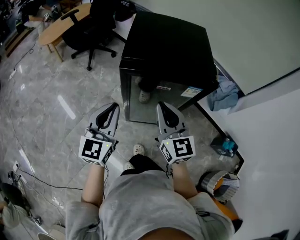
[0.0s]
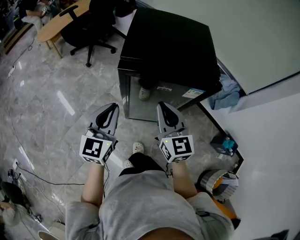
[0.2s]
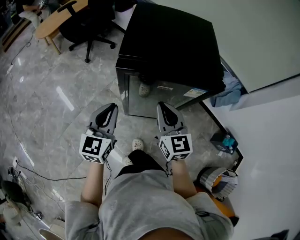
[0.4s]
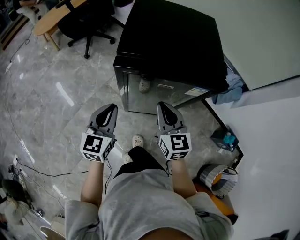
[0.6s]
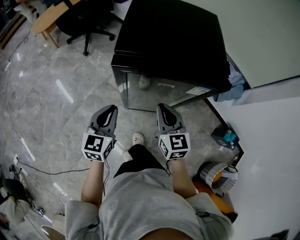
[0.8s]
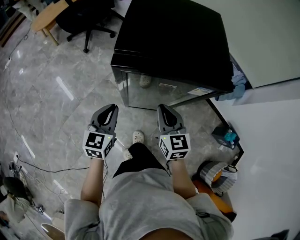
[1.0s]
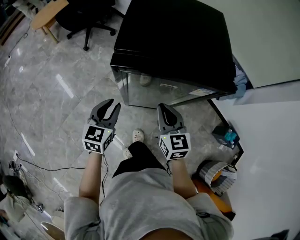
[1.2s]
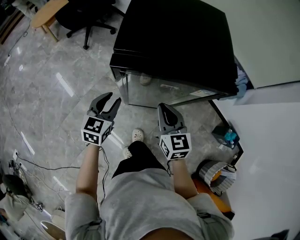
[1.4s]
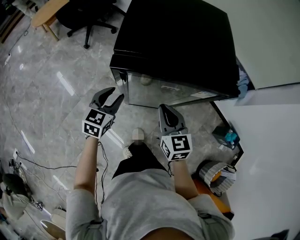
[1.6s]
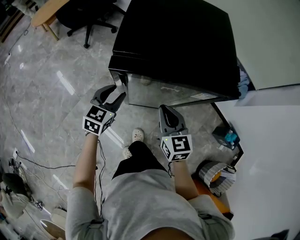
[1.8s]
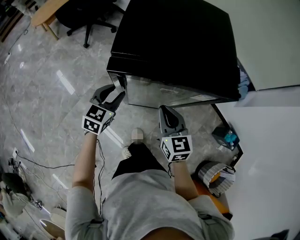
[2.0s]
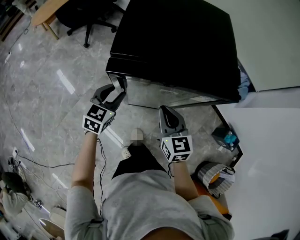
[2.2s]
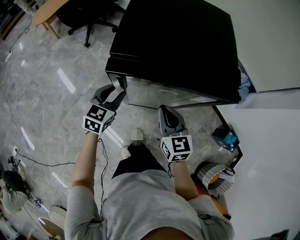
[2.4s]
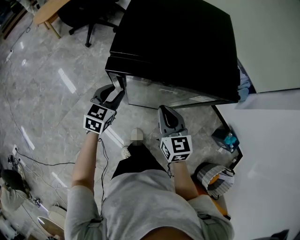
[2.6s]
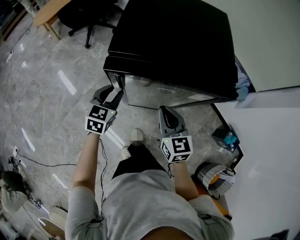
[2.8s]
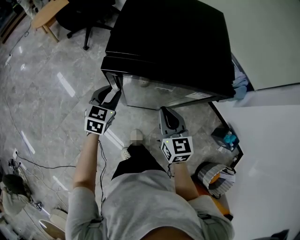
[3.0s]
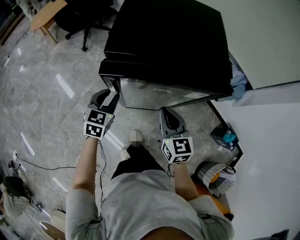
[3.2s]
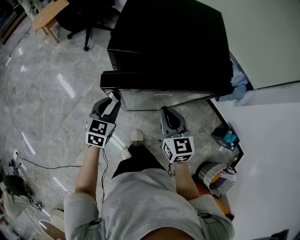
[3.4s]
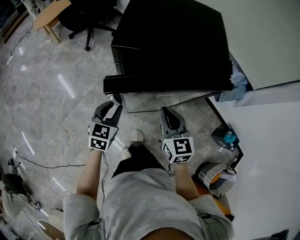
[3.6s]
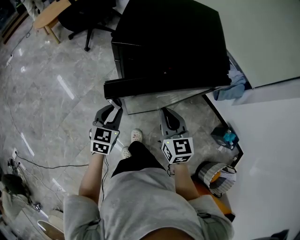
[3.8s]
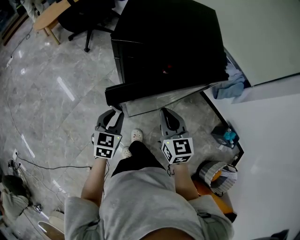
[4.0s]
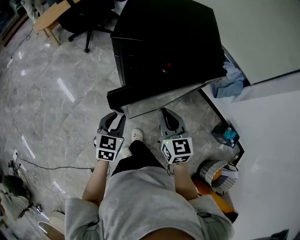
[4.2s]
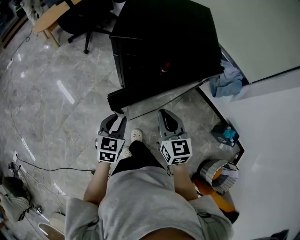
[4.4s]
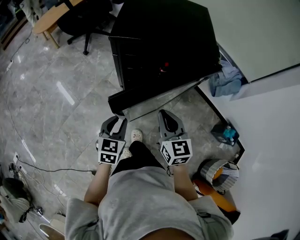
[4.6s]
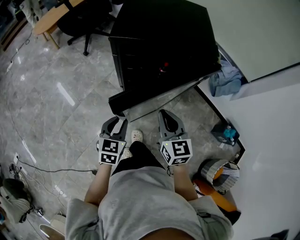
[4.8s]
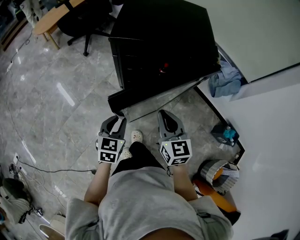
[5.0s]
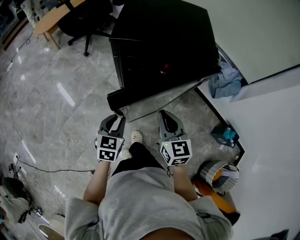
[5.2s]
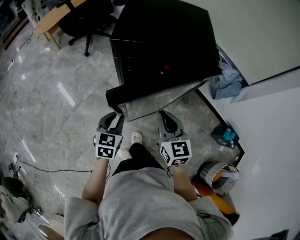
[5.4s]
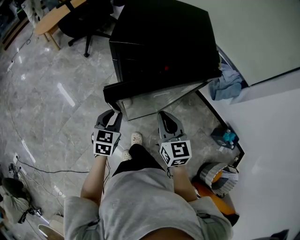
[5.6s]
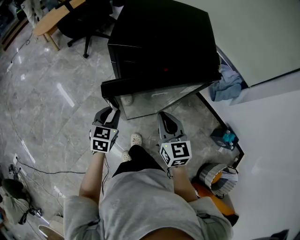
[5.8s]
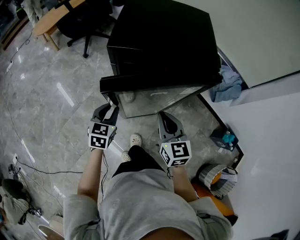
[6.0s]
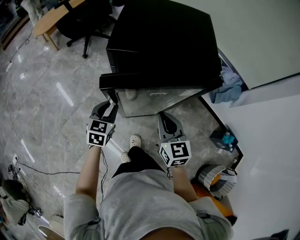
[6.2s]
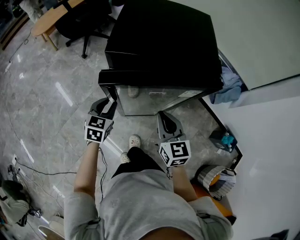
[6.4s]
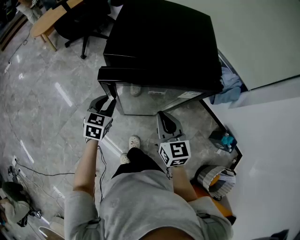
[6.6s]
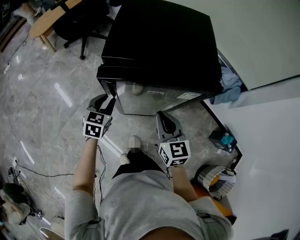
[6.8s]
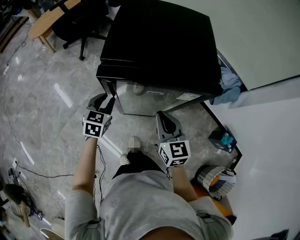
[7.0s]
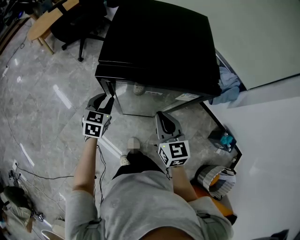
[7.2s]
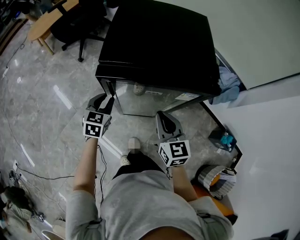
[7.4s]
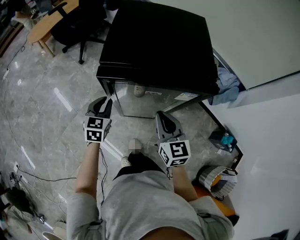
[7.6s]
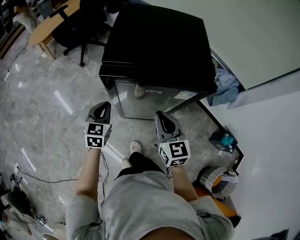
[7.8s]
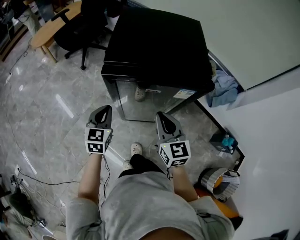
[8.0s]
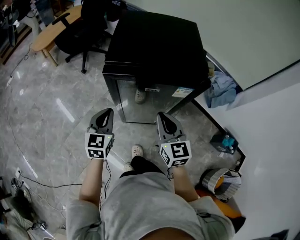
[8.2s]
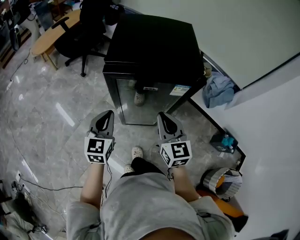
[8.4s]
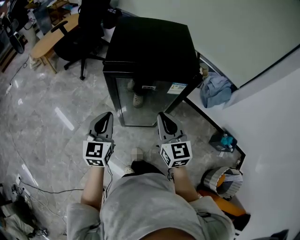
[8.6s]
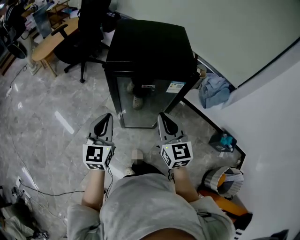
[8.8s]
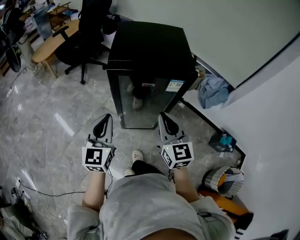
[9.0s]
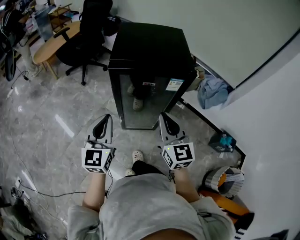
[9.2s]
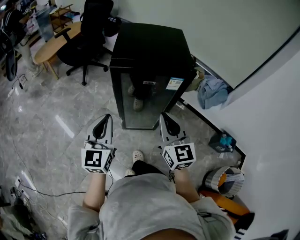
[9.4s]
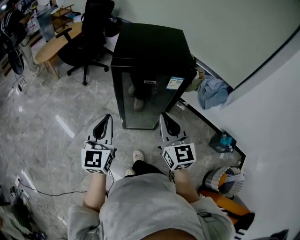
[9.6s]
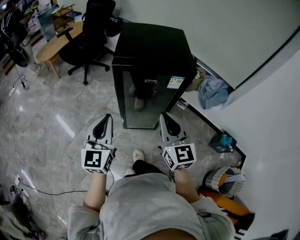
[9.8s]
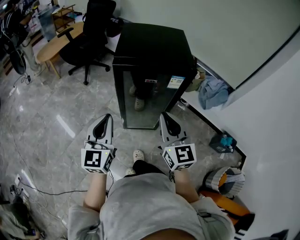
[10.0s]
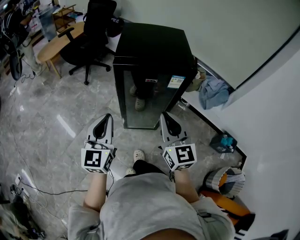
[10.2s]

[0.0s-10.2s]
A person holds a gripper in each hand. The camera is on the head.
0.0s to 1.4s: The right gripper is displaced downward by some 15 cm; the left gripper is displaced downward and forward by about 20 cm, swivels roughly 30 degrees, and opens its fingers.
1.4s to 3.0s: The grippers make only small movements.
3.0s to 4.4s: The right gripper shifts about 10 cm backward. Meanwhile the left gripper is displaced backward by approximately 15 cm.
4.4s to 5.8s: The left gripper shifts some 5 cm forward.
5.8s to 7.2s: The right gripper is displaced forward by about 5 cm. The left gripper is displaced forward by some 10 cm.
7.2s to 8.8s: The right gripper travels upward and backward by about 15 cm, while the left gripper travels upward and backward by approximately 20 cm, changes its angle by about 30 degrees, and closes up.
8.8s to 10.2s: Both grippers move backward and upward, some 10 cm.

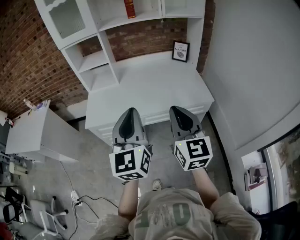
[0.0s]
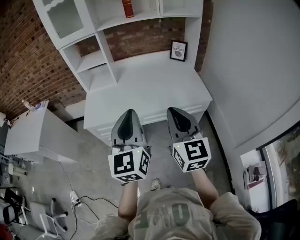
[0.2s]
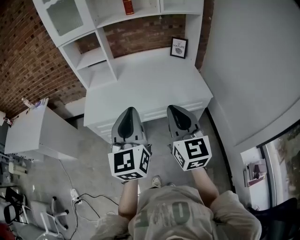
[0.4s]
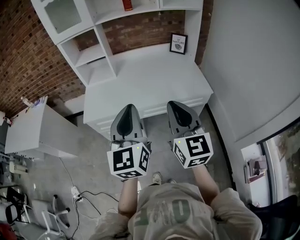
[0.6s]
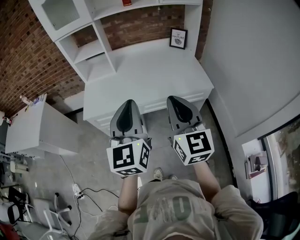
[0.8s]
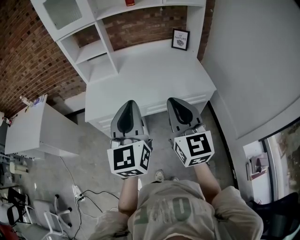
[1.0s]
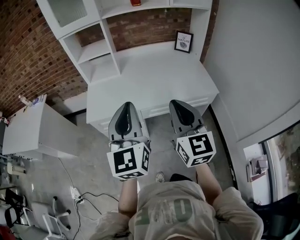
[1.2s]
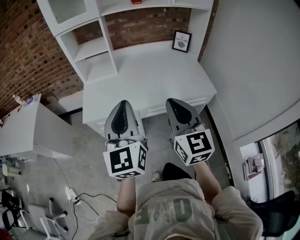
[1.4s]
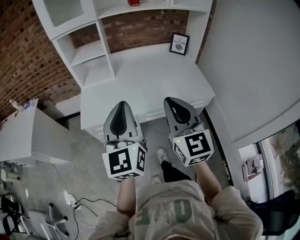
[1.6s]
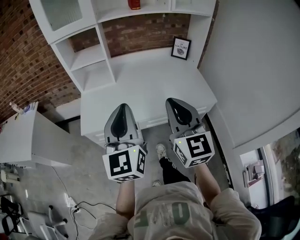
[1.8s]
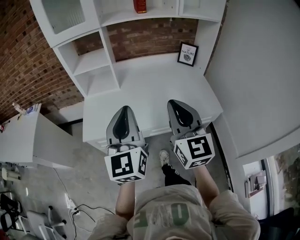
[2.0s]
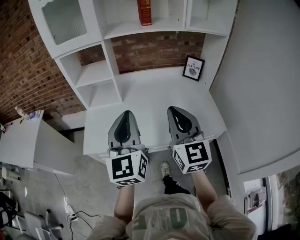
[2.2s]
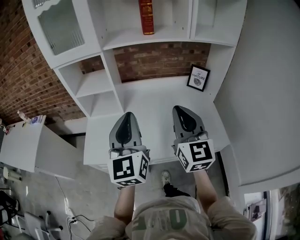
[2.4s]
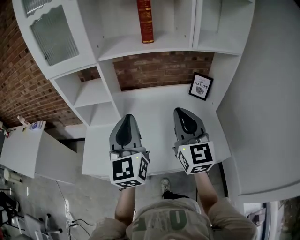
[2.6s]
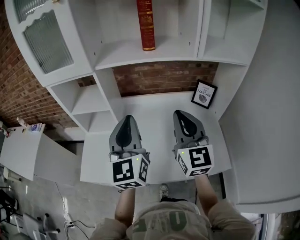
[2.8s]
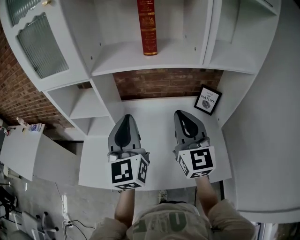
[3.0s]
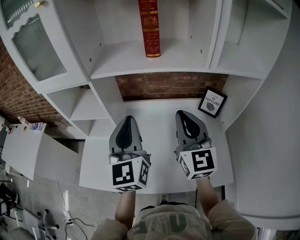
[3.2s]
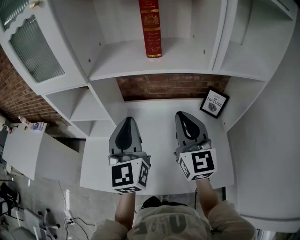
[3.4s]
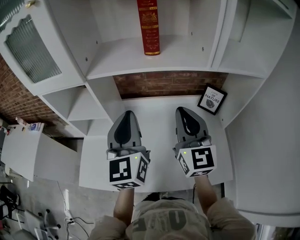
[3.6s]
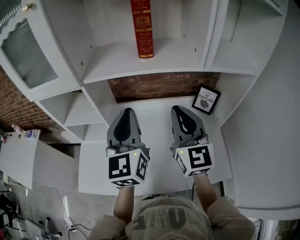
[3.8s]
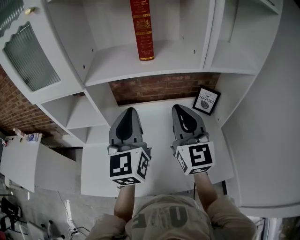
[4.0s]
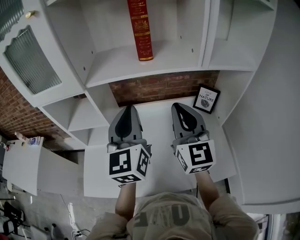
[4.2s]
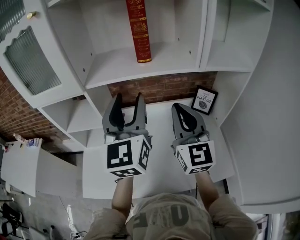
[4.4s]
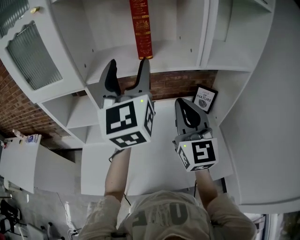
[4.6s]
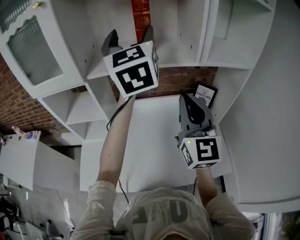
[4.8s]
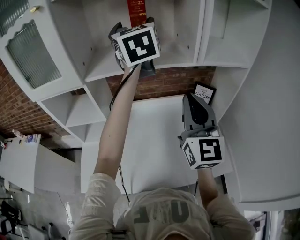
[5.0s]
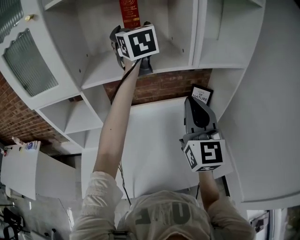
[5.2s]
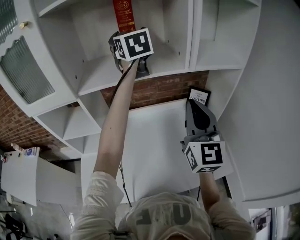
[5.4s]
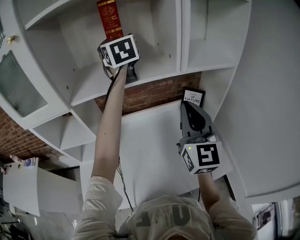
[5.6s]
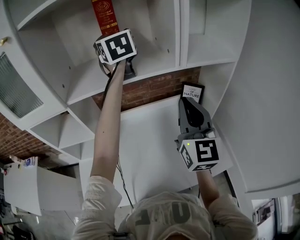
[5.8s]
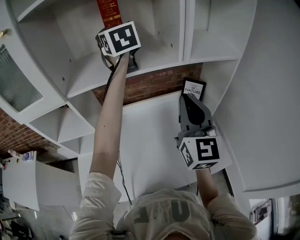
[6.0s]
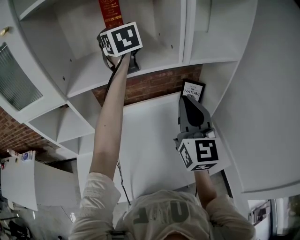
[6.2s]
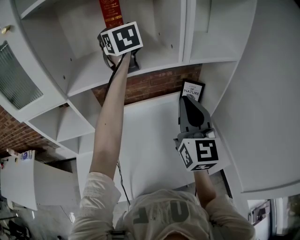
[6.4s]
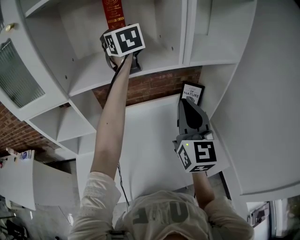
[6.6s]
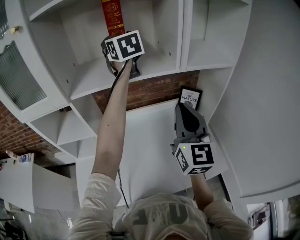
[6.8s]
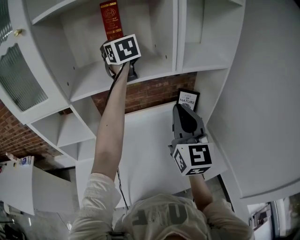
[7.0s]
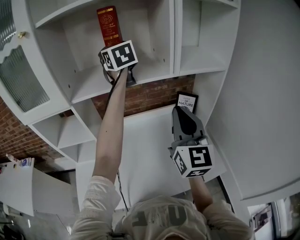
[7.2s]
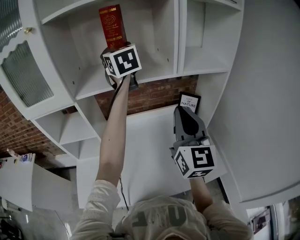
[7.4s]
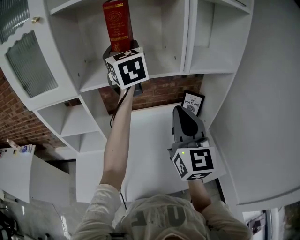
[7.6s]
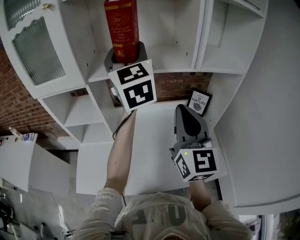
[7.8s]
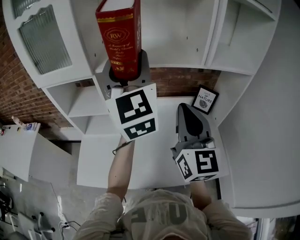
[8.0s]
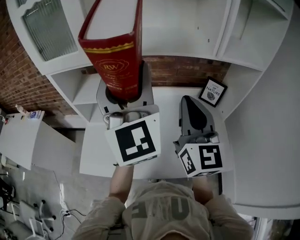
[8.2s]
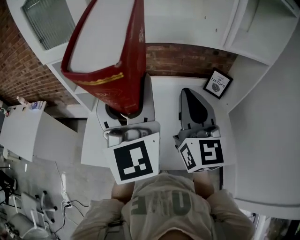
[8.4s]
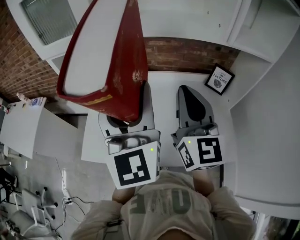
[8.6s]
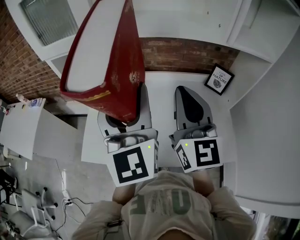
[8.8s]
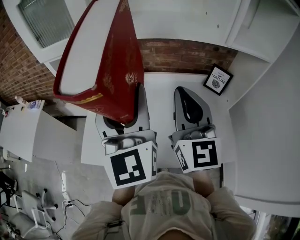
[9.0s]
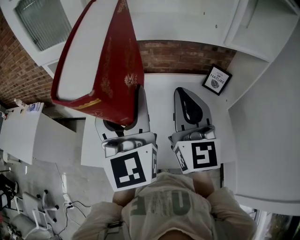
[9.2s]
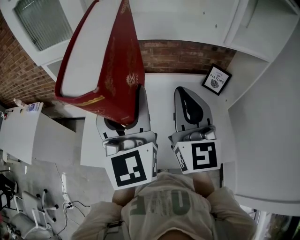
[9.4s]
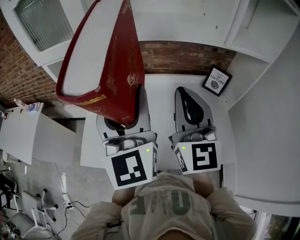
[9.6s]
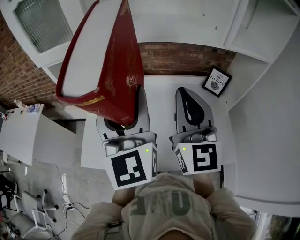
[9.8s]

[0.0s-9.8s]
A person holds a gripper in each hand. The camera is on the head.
0.0s to 1.4s: Both grippers move to the left, roughly 10 cm.
1.4s to 2.8s: Both grippers move forward, roughly 35 cm.
2.8s to 4.2s: The grippers both shift forward by about 10 cm.
4.2s to 5.6s: The left gripper goes roughly 30 cm forward and upward, and opens up; the right gripper heads to the right, covering approximately 10 cm.
5.6s to 7.0s: The grippers make only small movements.
7.0s to 8.4s: The right gripper heads to the left, covering about 10 cm; the left gripper shifts roughly 35 cm backward.
8.4s to 9.8s: The grippers move only a little.

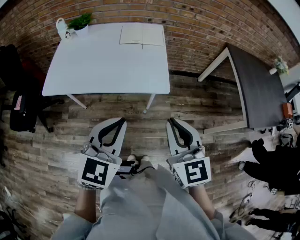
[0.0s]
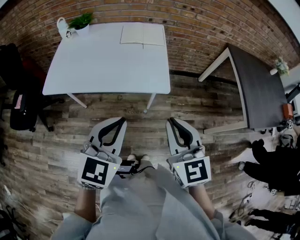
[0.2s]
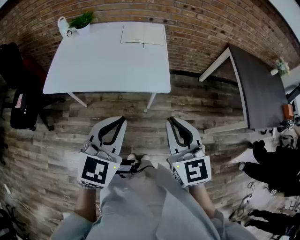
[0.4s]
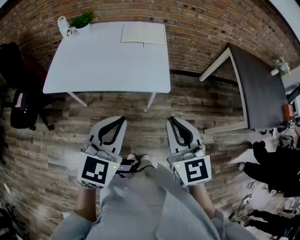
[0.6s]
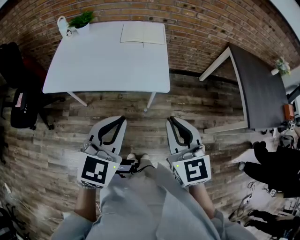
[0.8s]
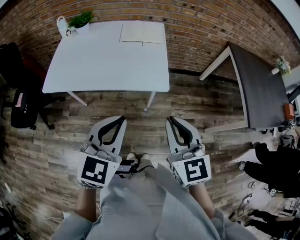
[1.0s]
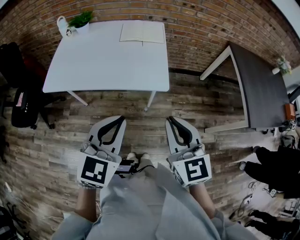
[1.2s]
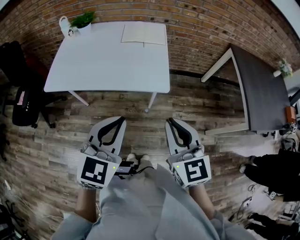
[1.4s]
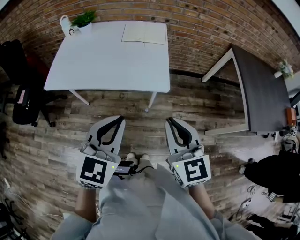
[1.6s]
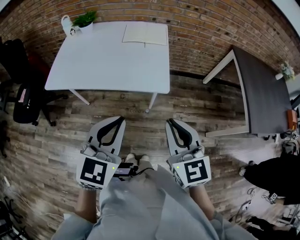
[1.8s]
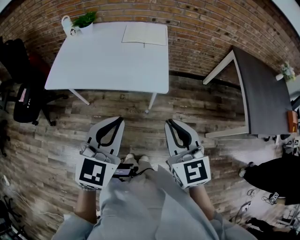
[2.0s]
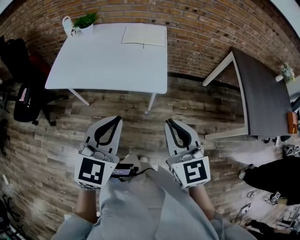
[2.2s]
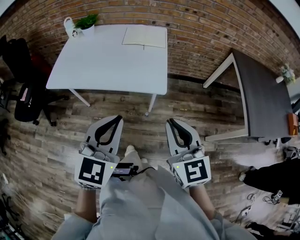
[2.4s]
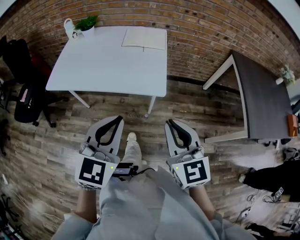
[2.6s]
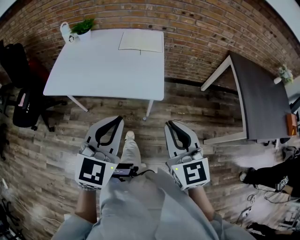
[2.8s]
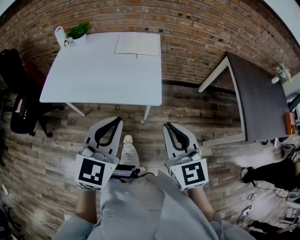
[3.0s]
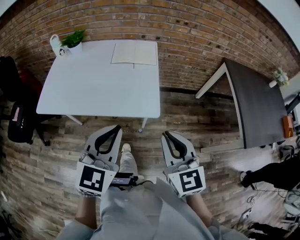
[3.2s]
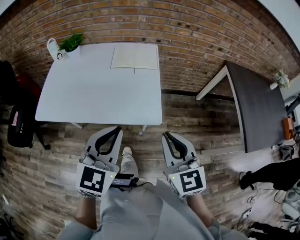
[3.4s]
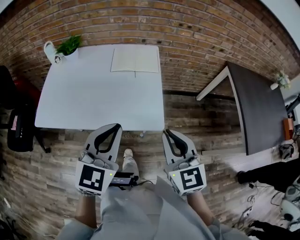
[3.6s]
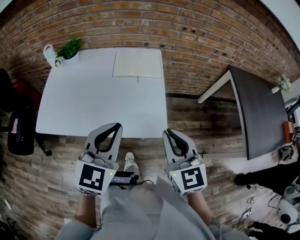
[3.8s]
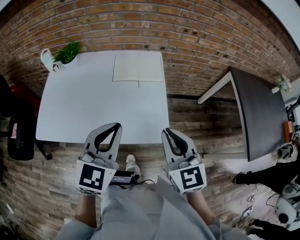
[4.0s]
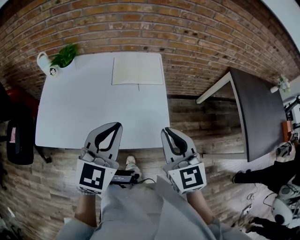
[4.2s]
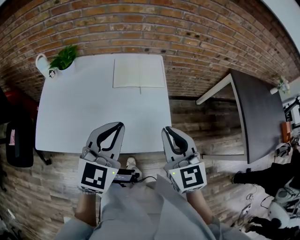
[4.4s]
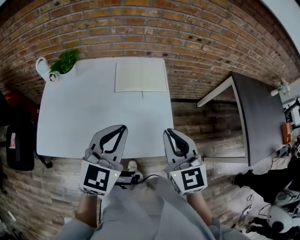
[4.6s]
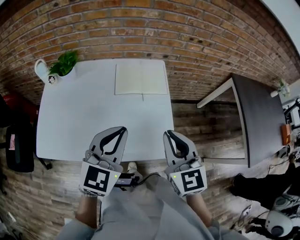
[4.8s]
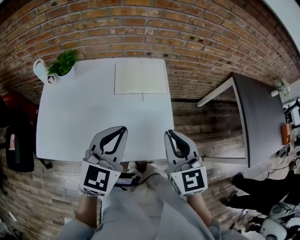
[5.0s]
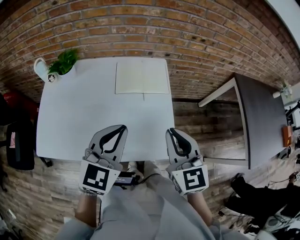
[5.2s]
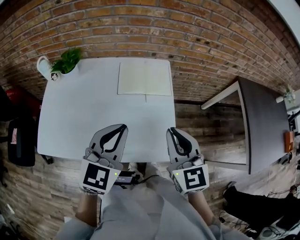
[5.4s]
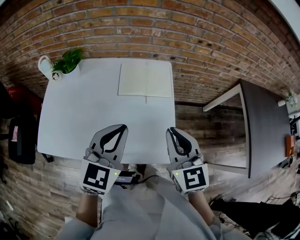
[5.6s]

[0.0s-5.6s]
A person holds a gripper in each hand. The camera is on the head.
0.0s to 1.4s: The grippers move only a little.
1.4s to 2.8s: The grippers stay close to where they were, moving slightly.
2.8s to 4.2s: The two grippers go some 30 cm forward.
4.2s to 5.6s: Both grippers move forward, approximately 10 cm.
